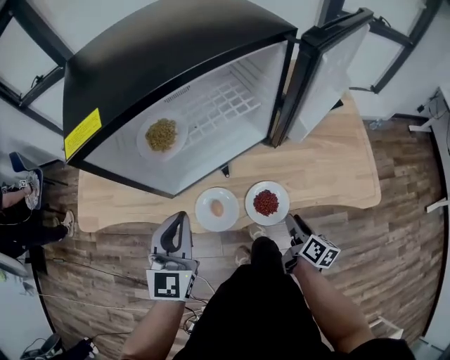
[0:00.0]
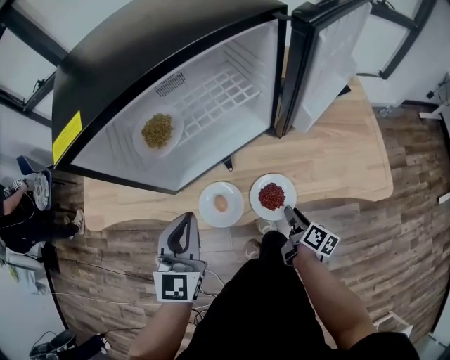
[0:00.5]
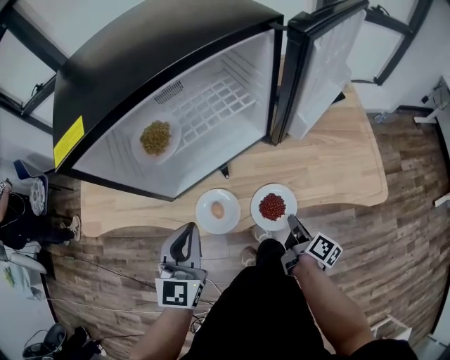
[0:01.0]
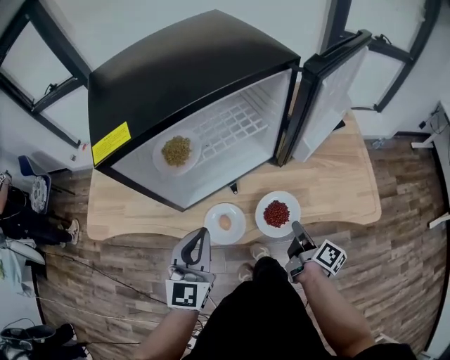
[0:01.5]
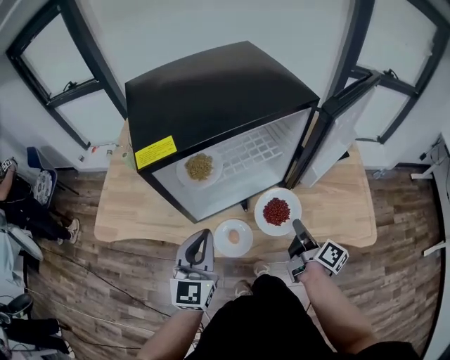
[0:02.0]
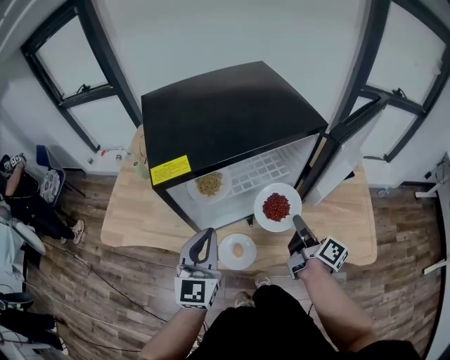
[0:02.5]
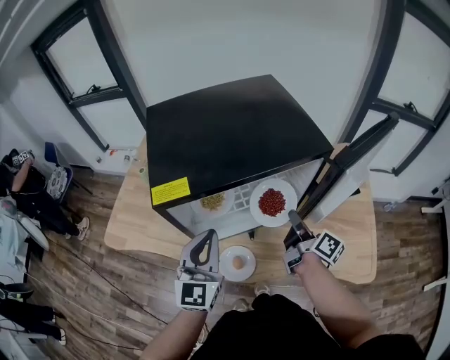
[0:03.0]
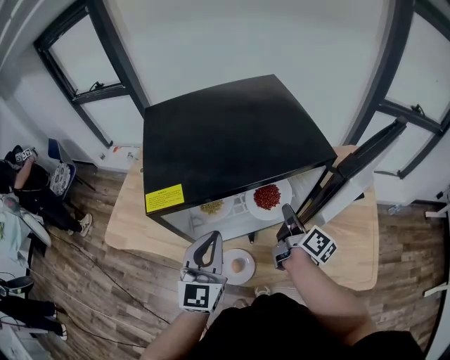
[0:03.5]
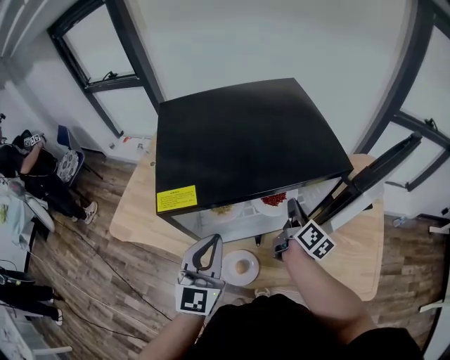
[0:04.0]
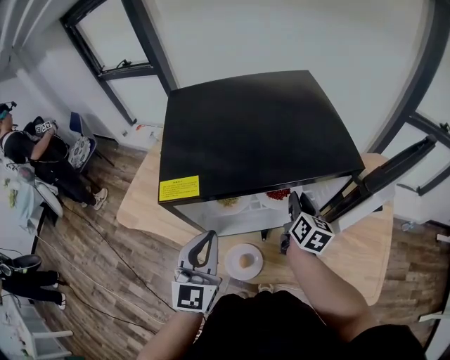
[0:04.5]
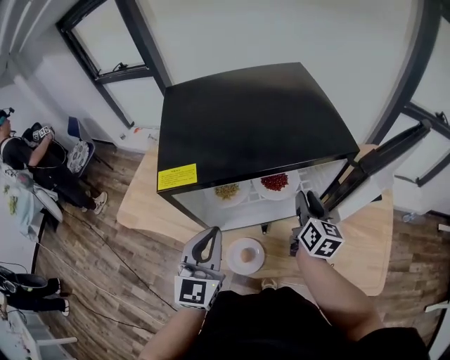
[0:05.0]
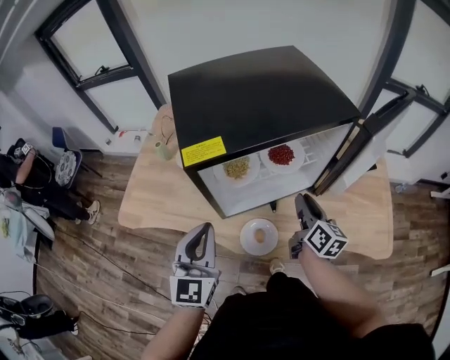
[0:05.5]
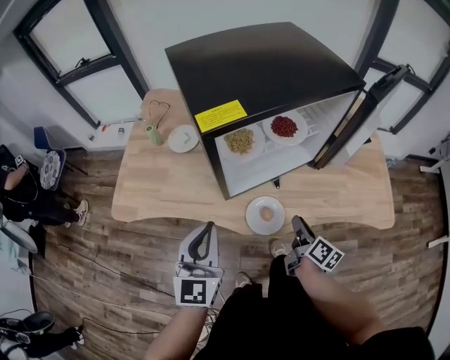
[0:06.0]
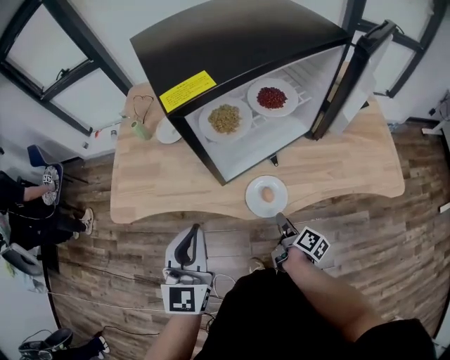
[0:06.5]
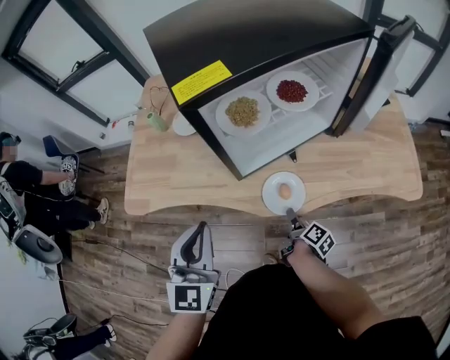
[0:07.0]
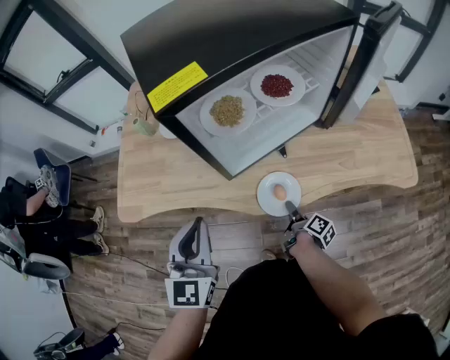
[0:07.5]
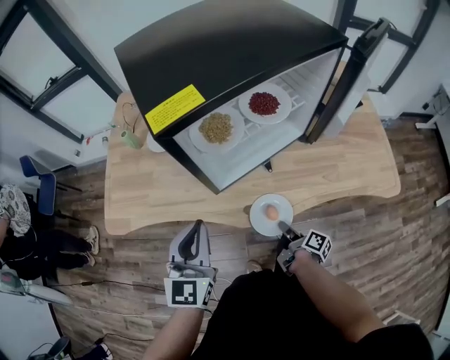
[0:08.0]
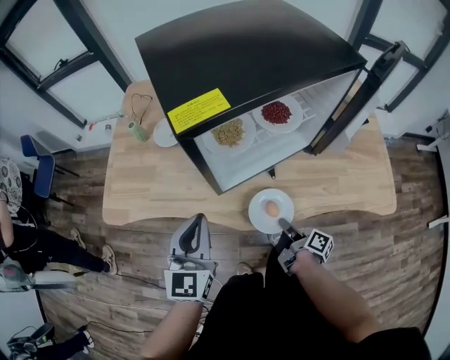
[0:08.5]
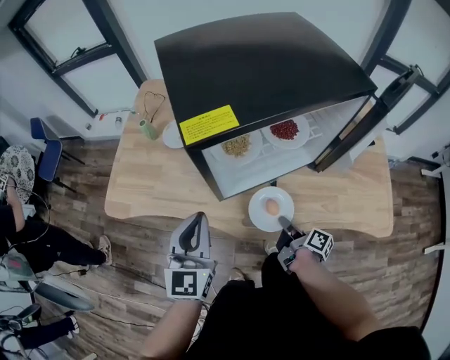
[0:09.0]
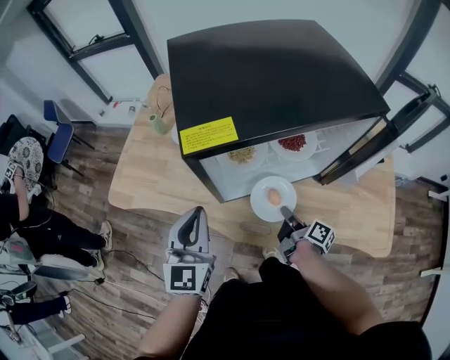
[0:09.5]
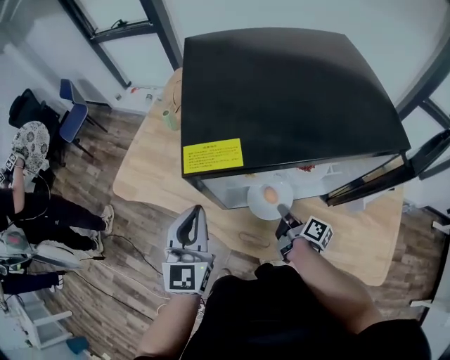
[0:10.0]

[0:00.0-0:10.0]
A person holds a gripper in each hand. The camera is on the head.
0.0 to 2.0 s: The right gripper travels upward and forward by approximately 15 cm, and closes up.
2.0 to 4.0 s: The left gripper heads forward and upward, covering some 10 cm; the right gripper travels forward by some 20 cm.
4.0 to 6.0 s: The right gripper shifts roughly 30 cm backward and downward, and opens its fingers. The left gripper goes roughly 15 cm to the left, backward and downward.
6.0 to 8.0 s: The right gripper travels downward and backward by roughly 15 cm, swivels about 30 degrees, and closes its fingers.
8.0 to 10.0 s: The right gripper heads forward and upward, covering some 20 cm, and changes its angle by some 30 degrees, while the left gripper is displaced forward by some 5 cm, and swivels some 30 degrees.

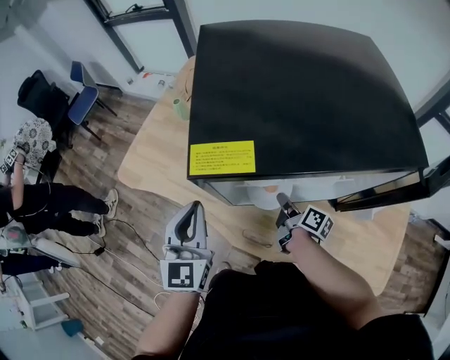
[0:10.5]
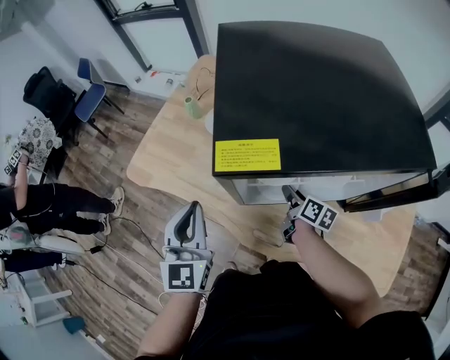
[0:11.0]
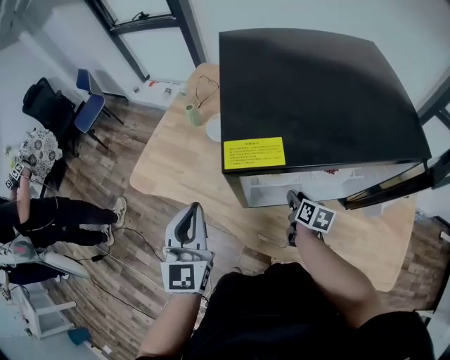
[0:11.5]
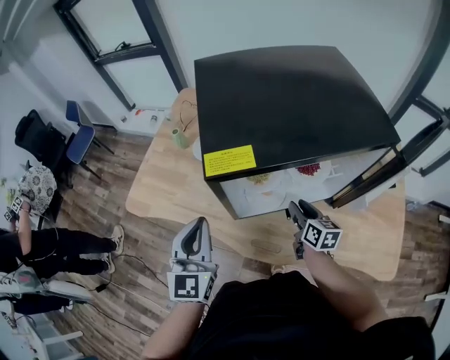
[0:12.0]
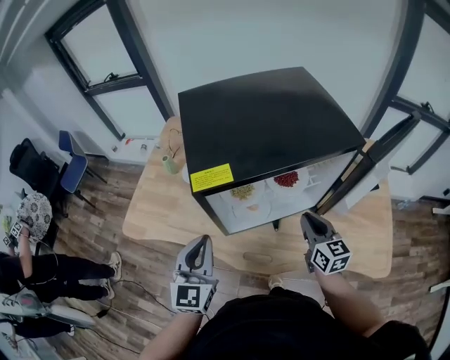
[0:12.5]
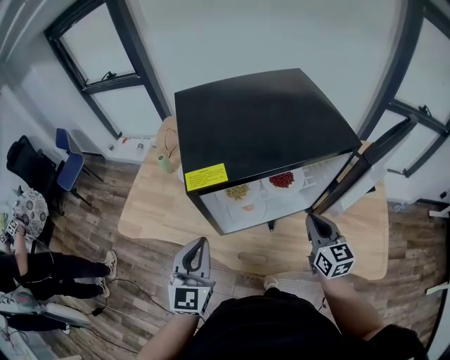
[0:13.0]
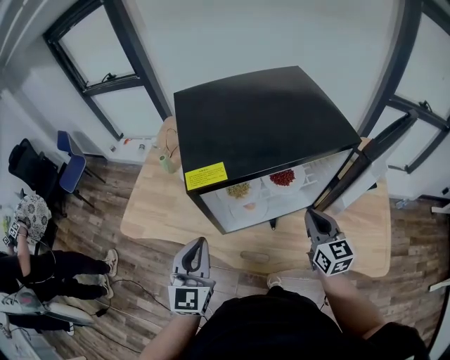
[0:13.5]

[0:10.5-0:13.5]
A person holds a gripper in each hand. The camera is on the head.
10.5 to 12.0 s: The right gripper moves upward, approximately 5 cm, rotates about 40 degrees, and opens.
12.0 to 13.5 s: The right gripper goes some 15 cm upward and to the right, swivels roughly 30 degrees, and closes.

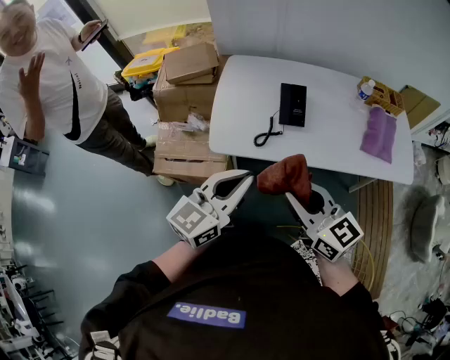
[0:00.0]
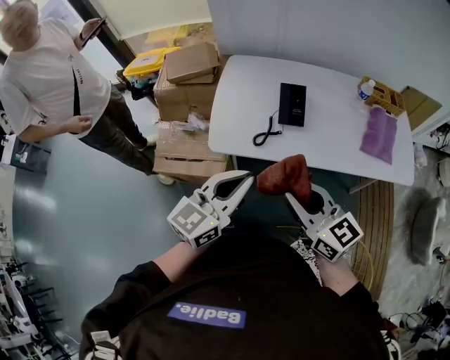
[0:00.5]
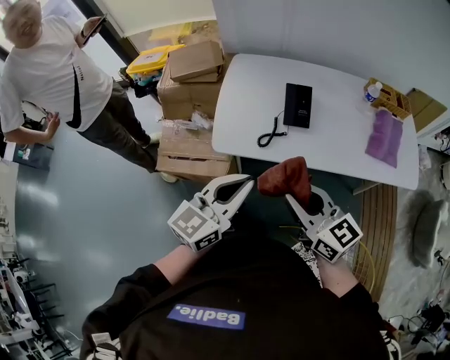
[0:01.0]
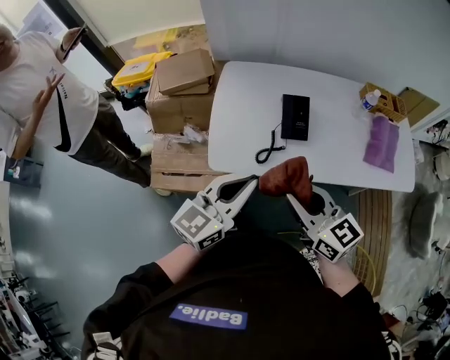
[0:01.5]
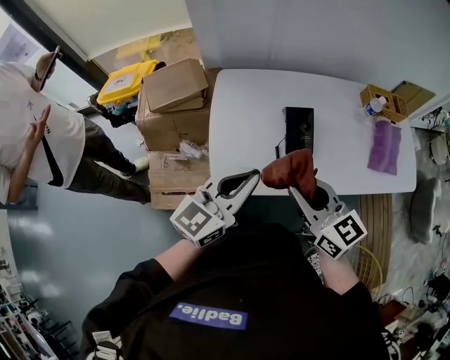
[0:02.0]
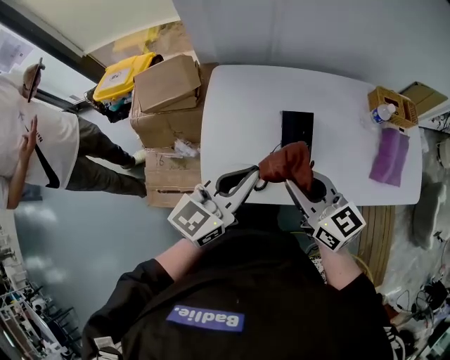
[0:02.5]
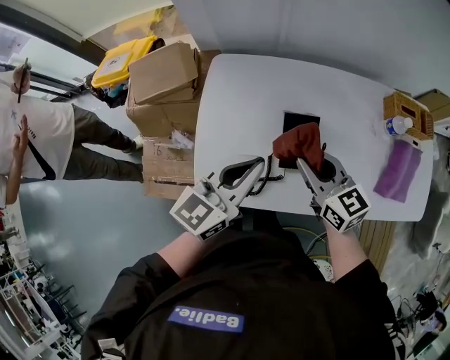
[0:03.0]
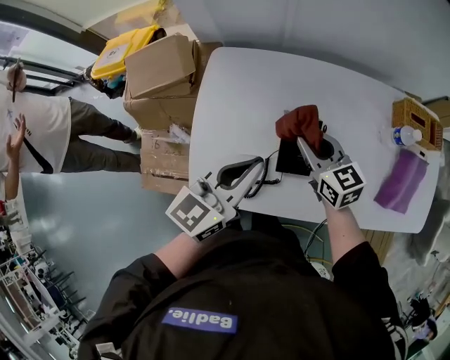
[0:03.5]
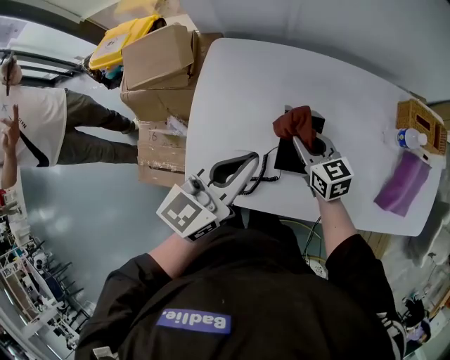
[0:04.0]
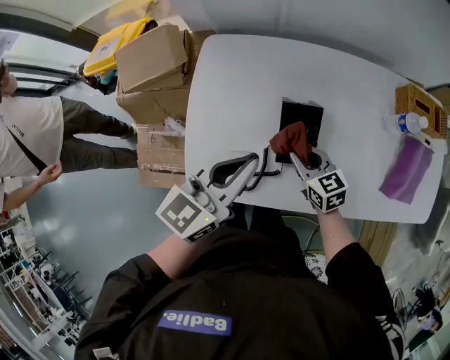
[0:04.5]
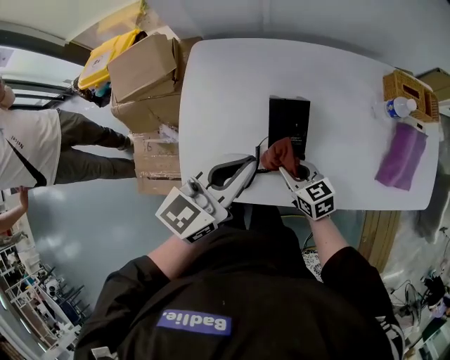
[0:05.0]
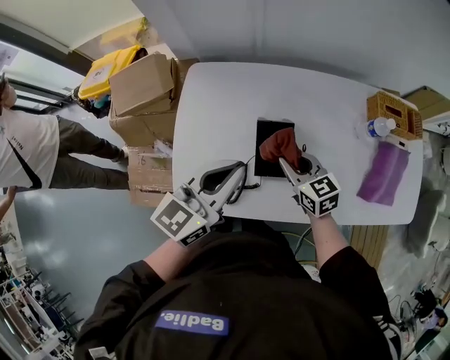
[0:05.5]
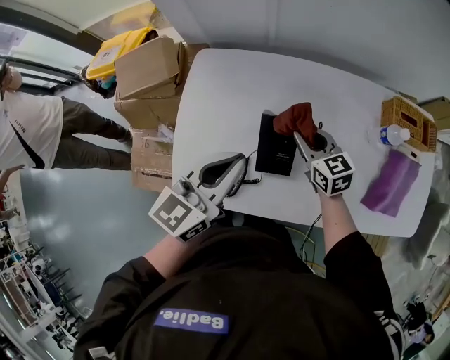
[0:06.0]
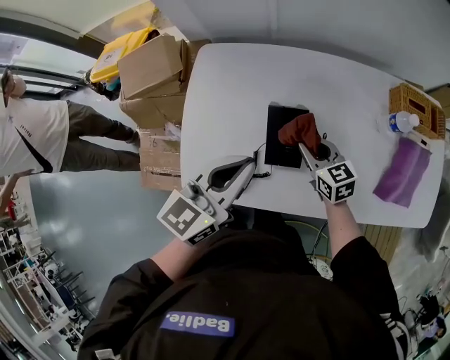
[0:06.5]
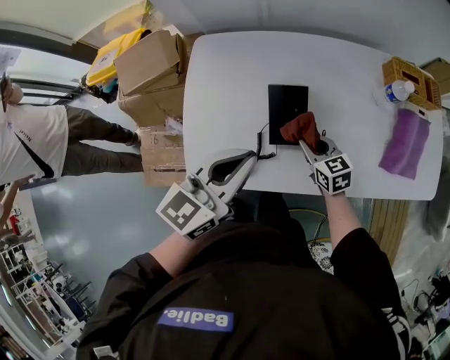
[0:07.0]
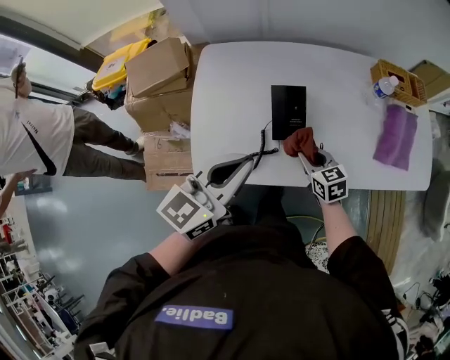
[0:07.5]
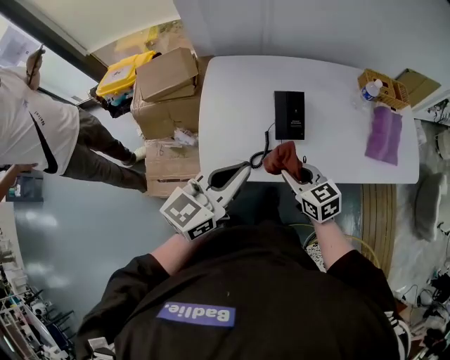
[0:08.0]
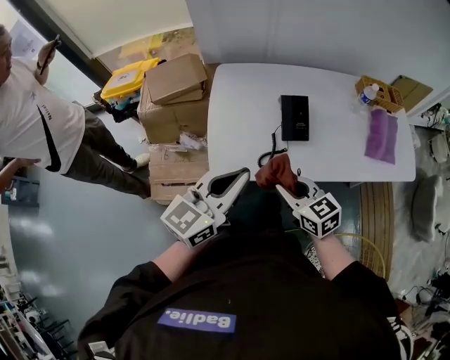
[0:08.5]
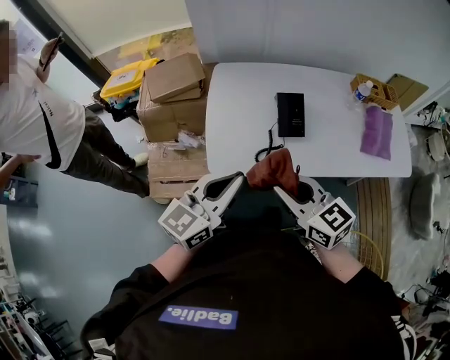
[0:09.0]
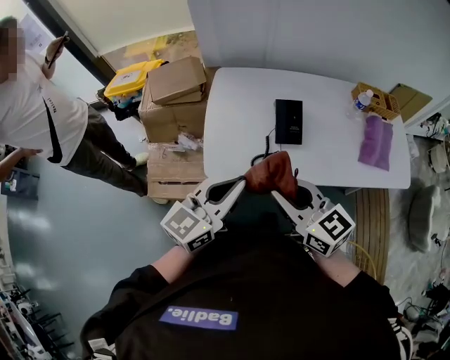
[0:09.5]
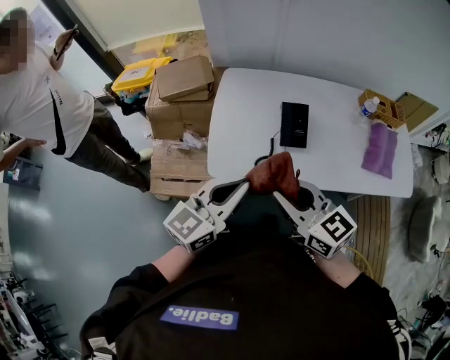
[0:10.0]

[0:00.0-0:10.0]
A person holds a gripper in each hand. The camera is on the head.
0.0 to 2.0 s: The grippers both shift forward by approximately 20 cm.
2.0 to 4.0 s: The right gripper moves forward and downward, about 35 cm. Meanwhile the left gripper travels forward, to the right and downward by approximately 20 cm.
4.0 to 6.0 s: The right gripper goes some 5 cm to the right, and moves approximately 15 cm backward and comes back.
6.0 to 8.0 s: The right gripper goes roughly 25 cm backward. Meanwhile the left gripper goes about 20 cm backward and to the left.
8.0 to 10.0 s: The right gripper heads upward and backward, covering approximately 20 cm, and changes its angle by roughly 20 degrees. The left gripper is displaced backward by some 5 cm.

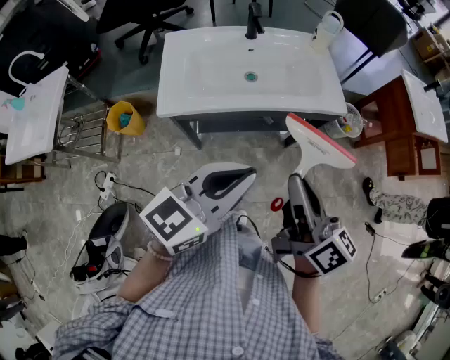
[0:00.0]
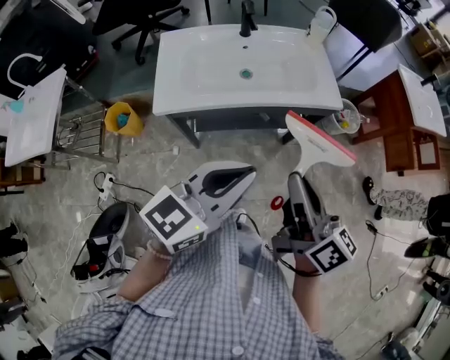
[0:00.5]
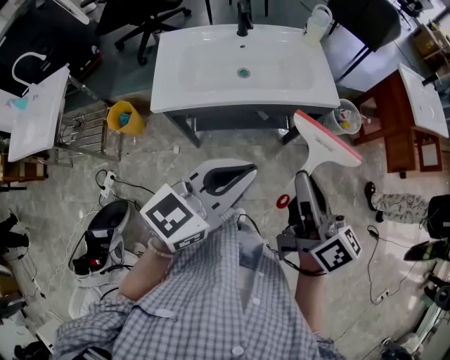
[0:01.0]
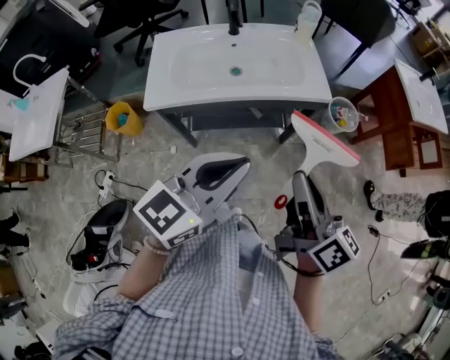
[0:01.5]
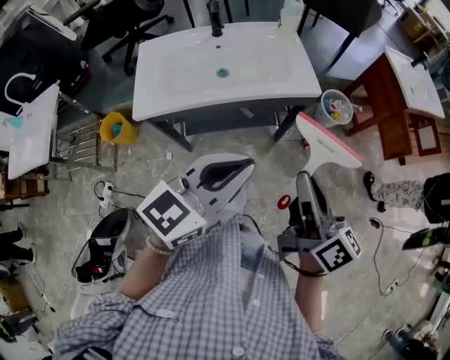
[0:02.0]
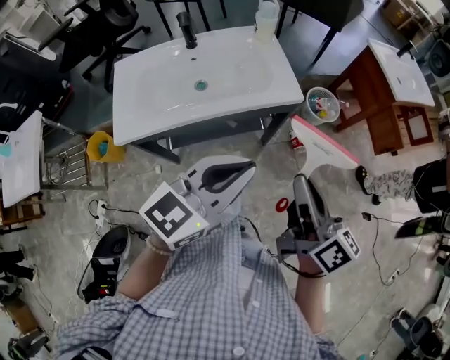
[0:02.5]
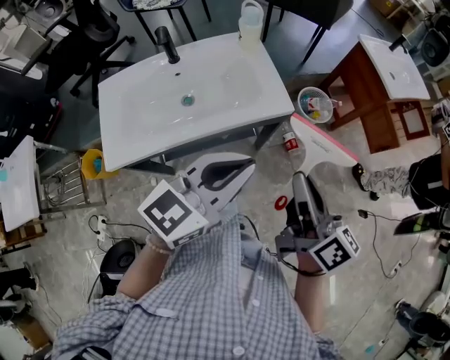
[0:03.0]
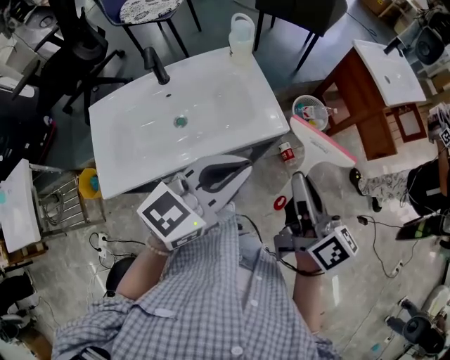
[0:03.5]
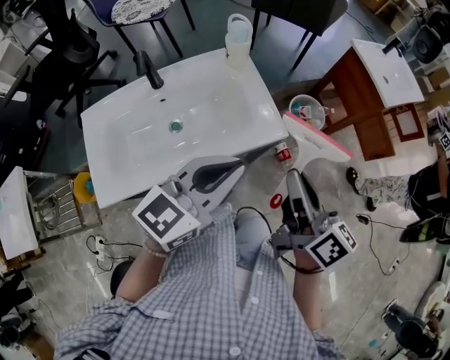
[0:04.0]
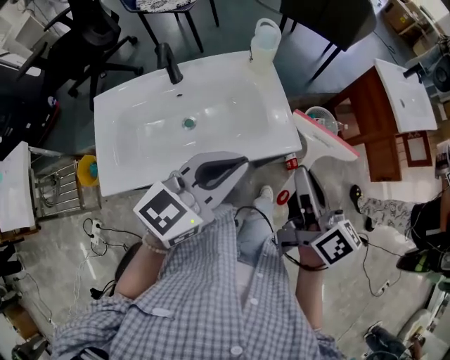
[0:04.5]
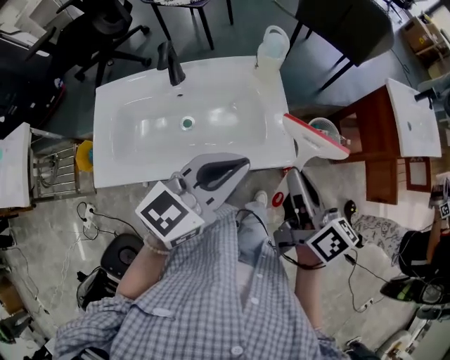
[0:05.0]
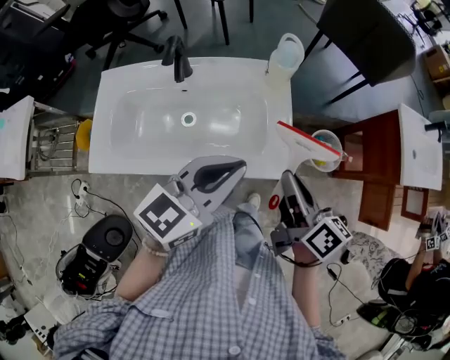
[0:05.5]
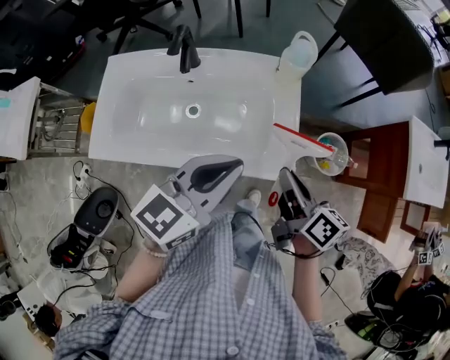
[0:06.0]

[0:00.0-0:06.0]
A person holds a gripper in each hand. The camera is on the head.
0.0 to 2.0 s: Both grippers travel together to the right, roughly 10 cm.
2.0 to 4.0 s: The two grippers go approximately 25 cm forward.
4.0 to 6.0 s: The right gripper ends up roughly 20 cm from where it was, and changes its angle by some 30 degrees. The left gripper changes place by about 10 cm, and rotates roughly 30 degrees.
